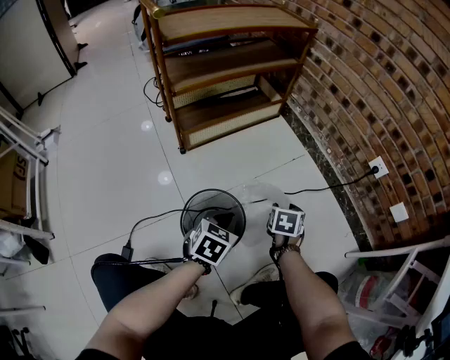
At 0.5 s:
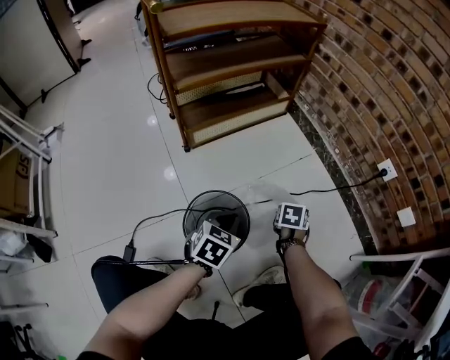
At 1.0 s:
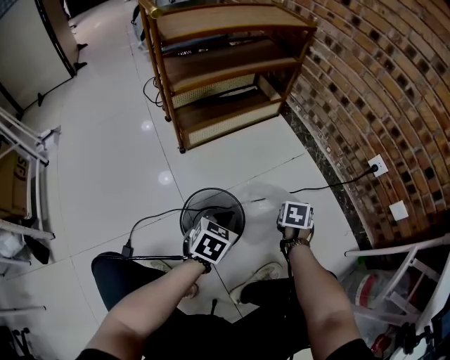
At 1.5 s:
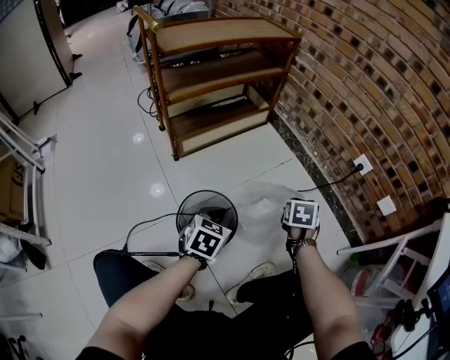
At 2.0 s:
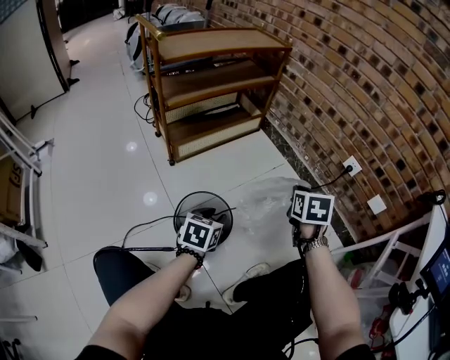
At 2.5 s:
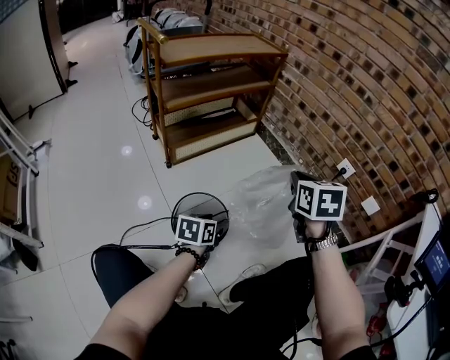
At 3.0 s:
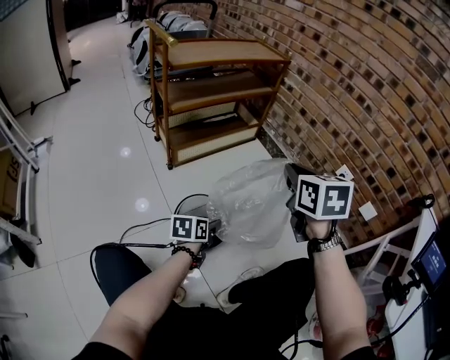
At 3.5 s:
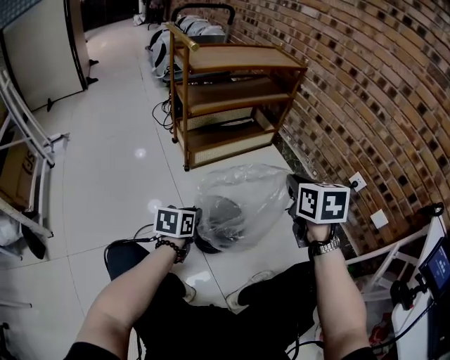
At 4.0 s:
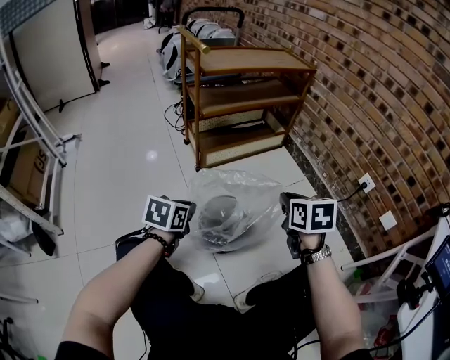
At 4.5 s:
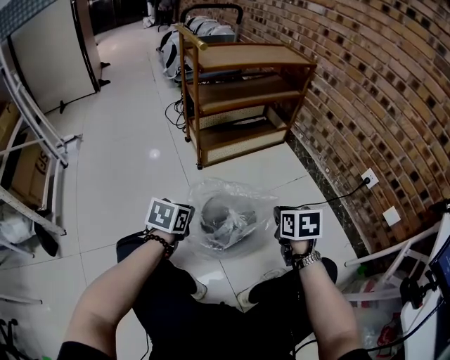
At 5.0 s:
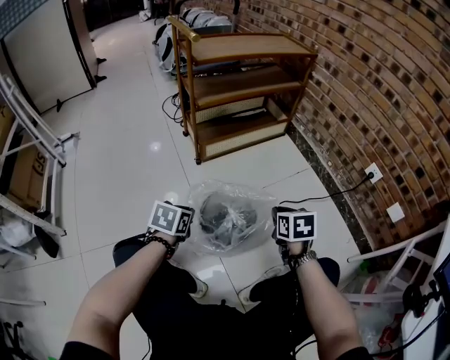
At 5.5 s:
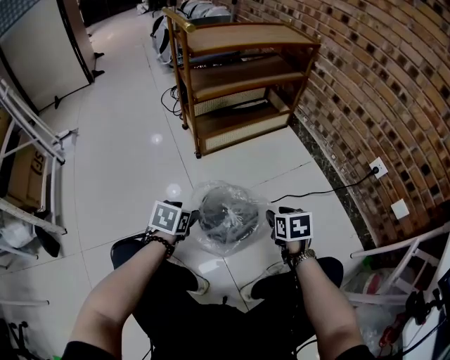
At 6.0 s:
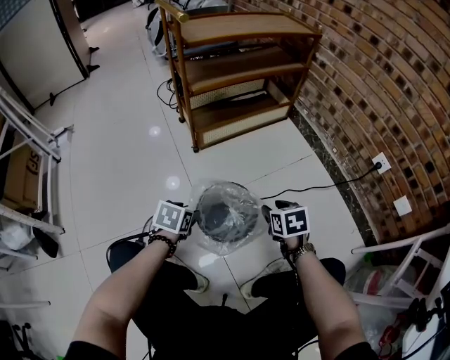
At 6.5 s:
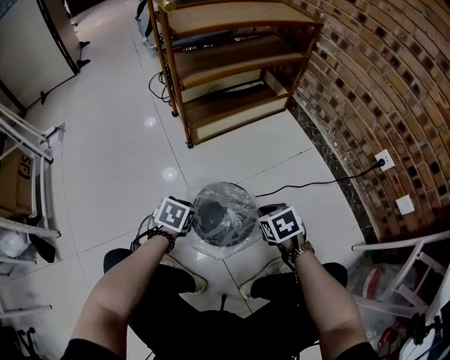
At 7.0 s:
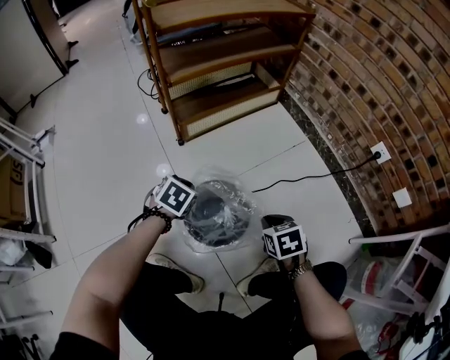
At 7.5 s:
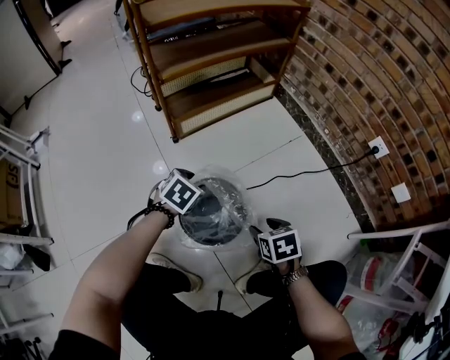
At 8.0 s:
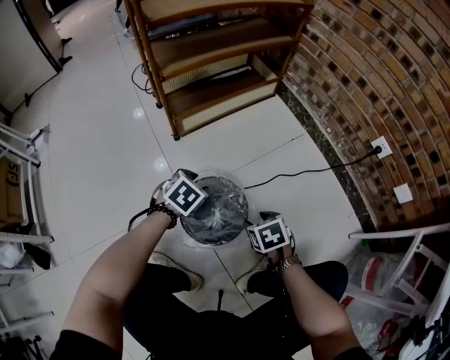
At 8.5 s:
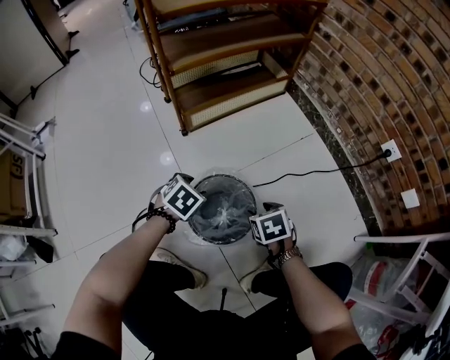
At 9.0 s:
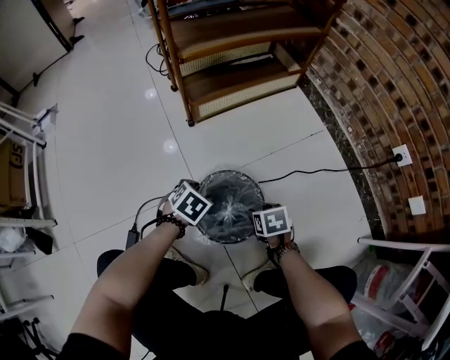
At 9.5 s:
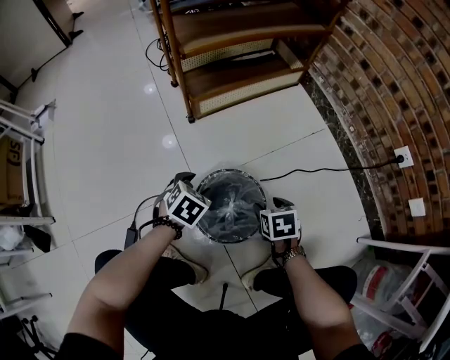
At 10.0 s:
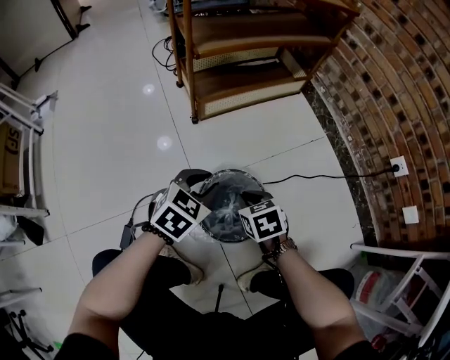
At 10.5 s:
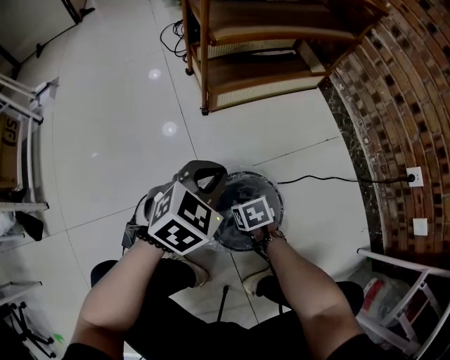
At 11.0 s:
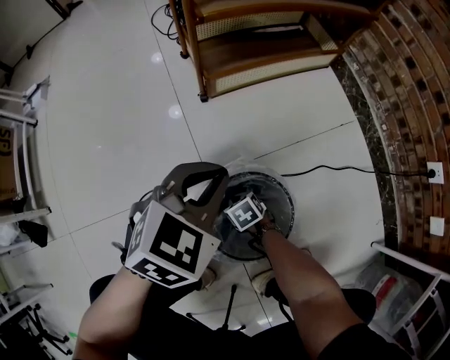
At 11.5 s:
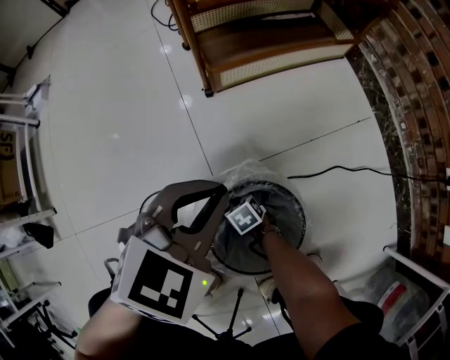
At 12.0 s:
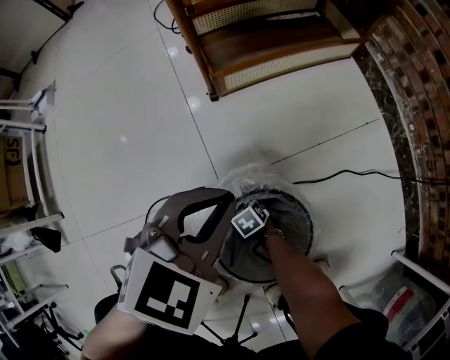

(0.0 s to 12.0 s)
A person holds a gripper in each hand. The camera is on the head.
0.0 s - 2.0 s: The right gripper moves upward, some 20 cm, and closes. The left gripper opens up.
2.0 s - 4.0 s: The left gripper goes approximately 20 cm to the left, upward and backward, and closes up. Meanwhile the right gripper heads to the left and backward, covering some 15 cm, reaches roughly 15 cm upward, then returns, and rotates some 20 degrees.
4.0 s - 6.0 s: The grippers both shift downward by about 15 cm. The left gripper opens up. Meanwhile the right gripper opens.
6.0 s - 8.0 s: The left gripper is displaced forward and to the right by some 15 cm, changes its angle by approximately 30 degrees, and closes, then reopens; the right gripper travels downward by approximately 5 cm, and closes and opens again.
8.0 s - 10.0 s: The right gripper shifts roughly 15 cm to the left and forward, and closes up; the left gripper heads upward, covering approximately 5 cm, and closes its fingers.
10.0 s - 12.0 s: The right gripper goes about 30 cm downward, and rotates some 30 degrees, while the left gripper shifts by some 5 cm, and closes up.

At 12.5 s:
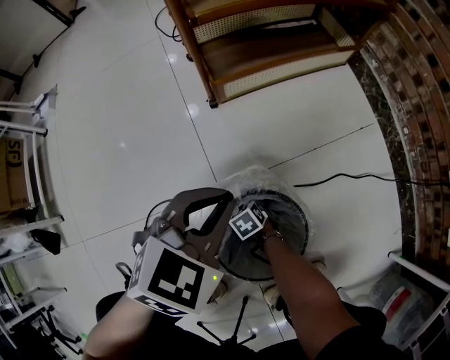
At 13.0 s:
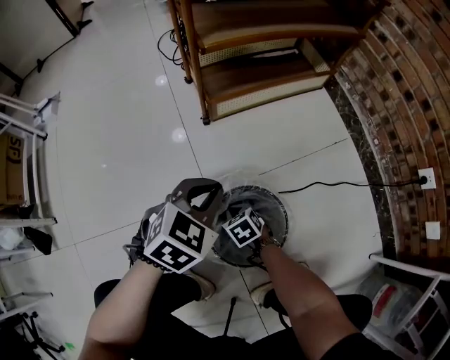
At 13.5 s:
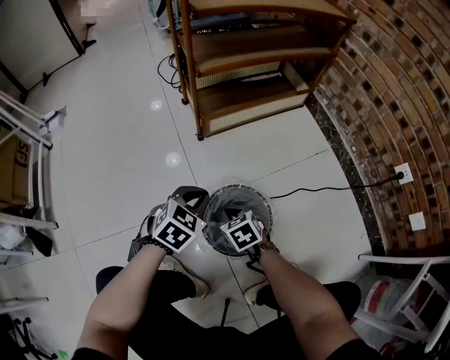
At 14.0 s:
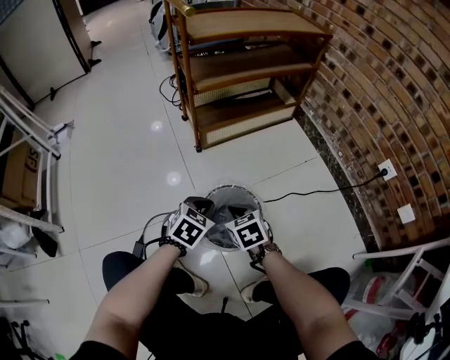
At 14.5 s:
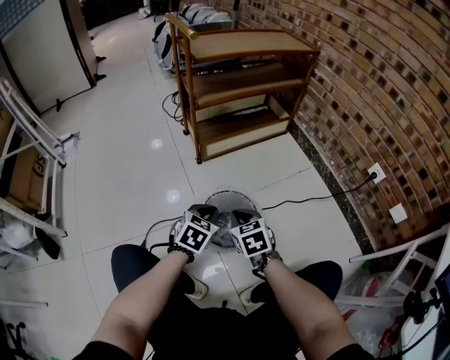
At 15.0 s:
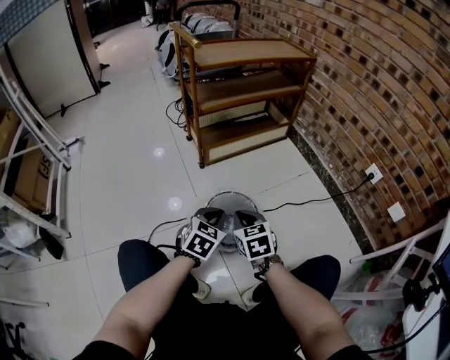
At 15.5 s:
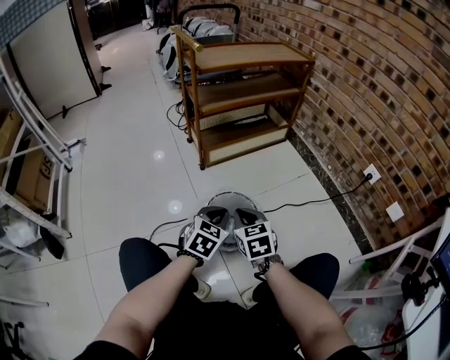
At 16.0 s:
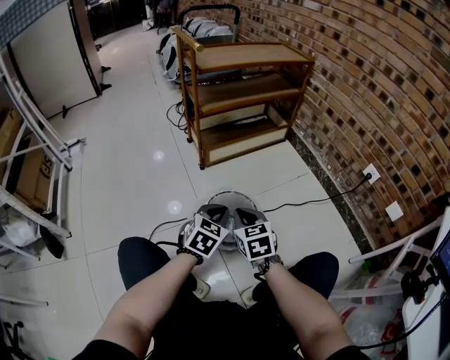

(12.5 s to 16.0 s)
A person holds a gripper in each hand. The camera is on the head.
12.5 s - 14.5 s: The right gripper is displaced upward by about 35 cm, and turns by some 40 degrees, while the left gripper is displaced backward by some 15 cm.
14.5 s - 16.0 s: The left gripper shifts by about 5 cm. The right gripper goes about 5 cm upward.

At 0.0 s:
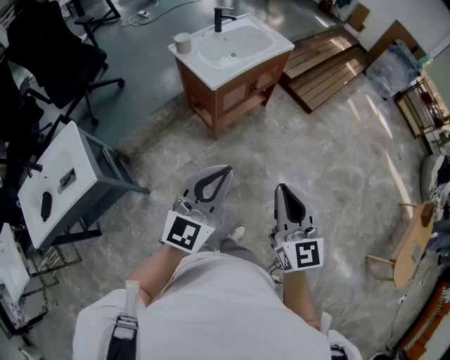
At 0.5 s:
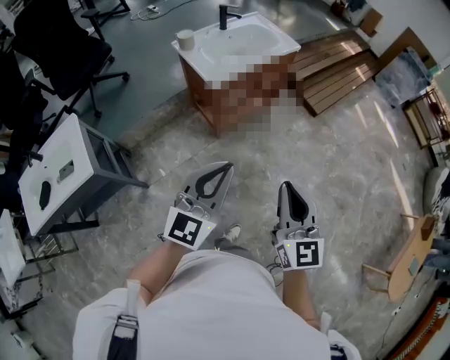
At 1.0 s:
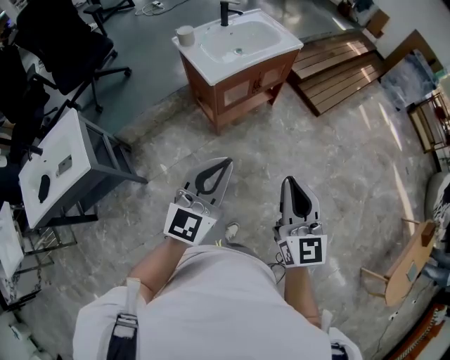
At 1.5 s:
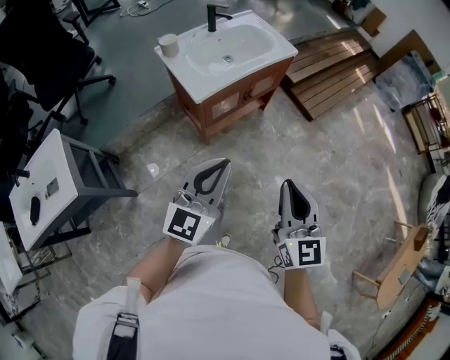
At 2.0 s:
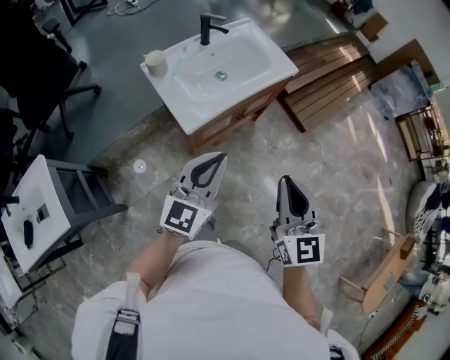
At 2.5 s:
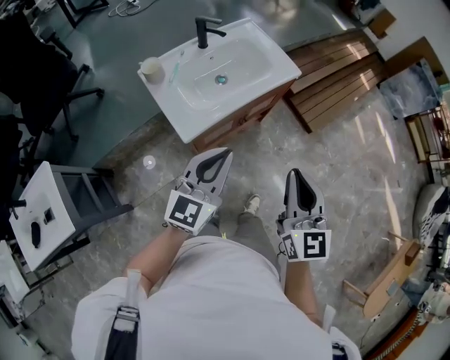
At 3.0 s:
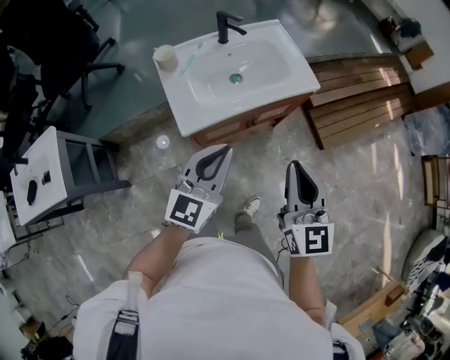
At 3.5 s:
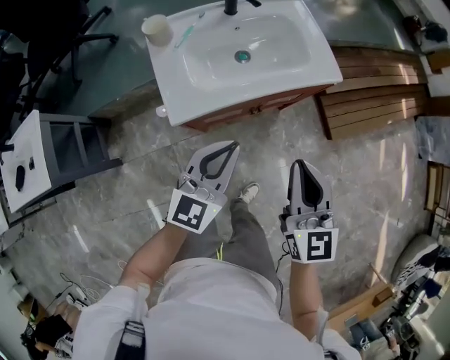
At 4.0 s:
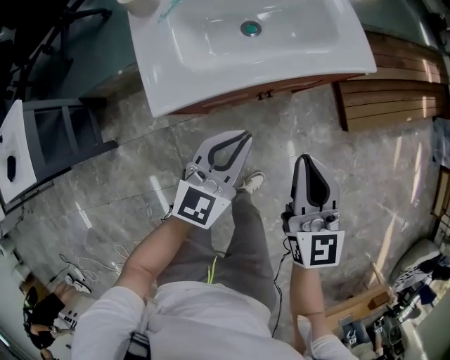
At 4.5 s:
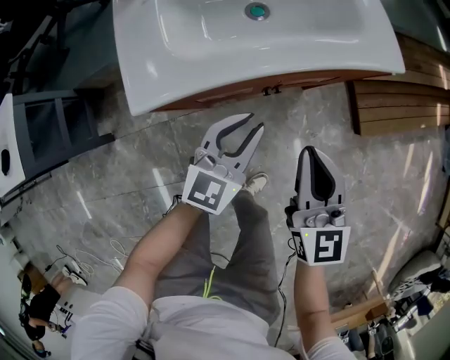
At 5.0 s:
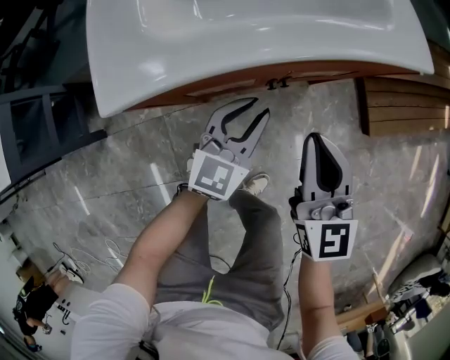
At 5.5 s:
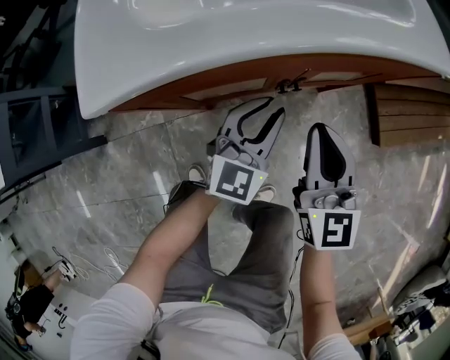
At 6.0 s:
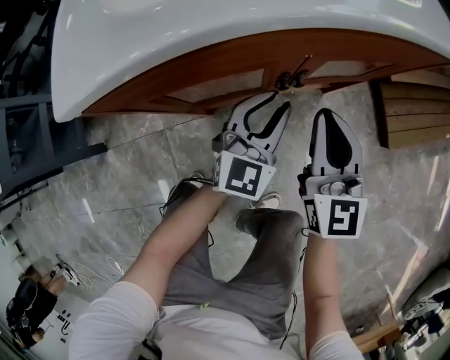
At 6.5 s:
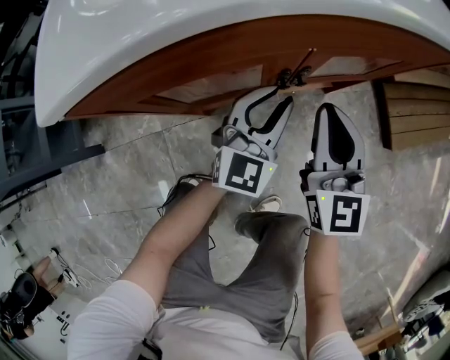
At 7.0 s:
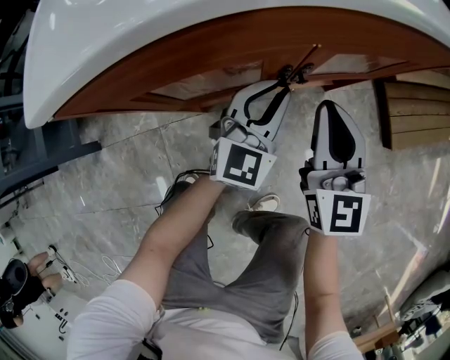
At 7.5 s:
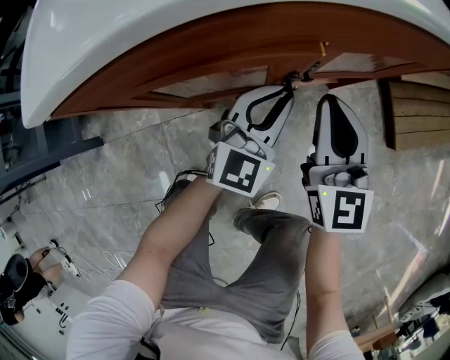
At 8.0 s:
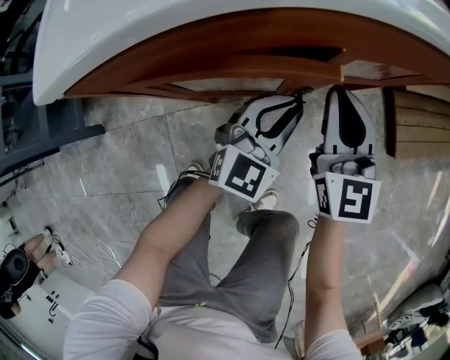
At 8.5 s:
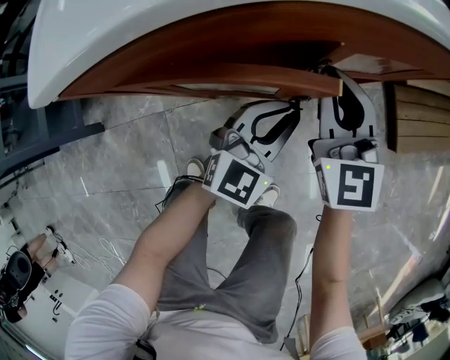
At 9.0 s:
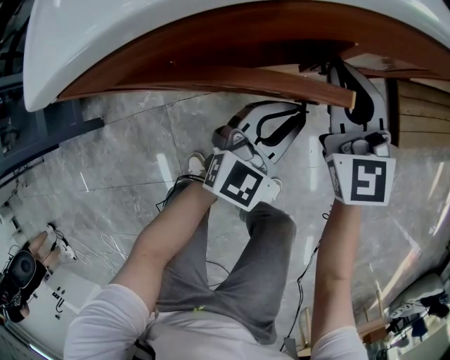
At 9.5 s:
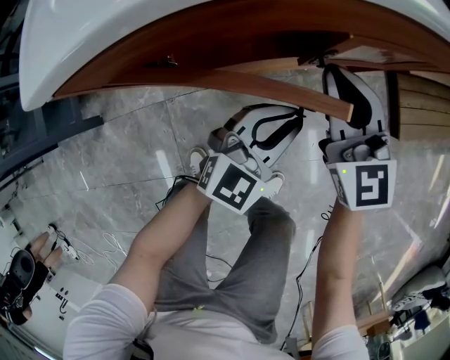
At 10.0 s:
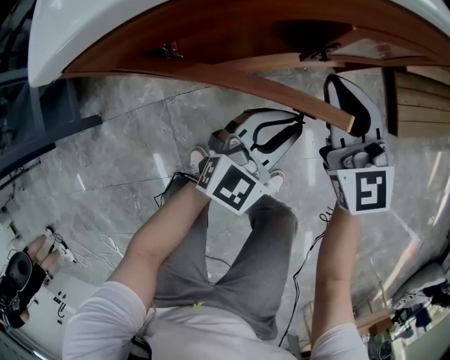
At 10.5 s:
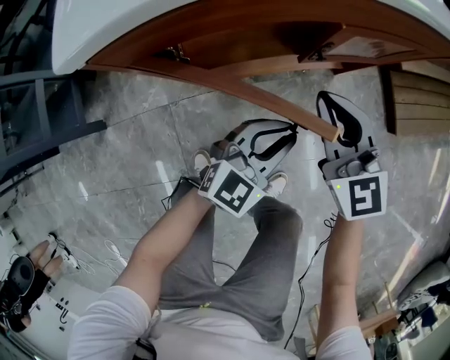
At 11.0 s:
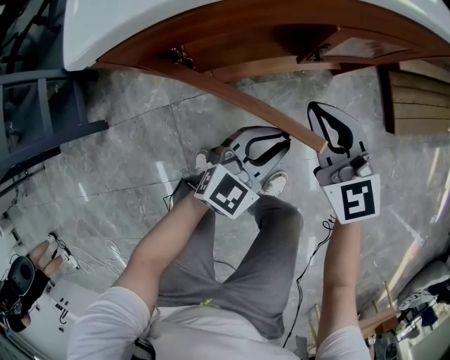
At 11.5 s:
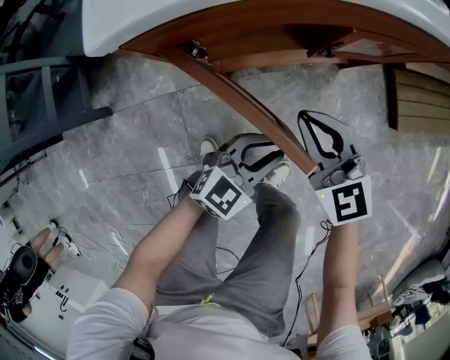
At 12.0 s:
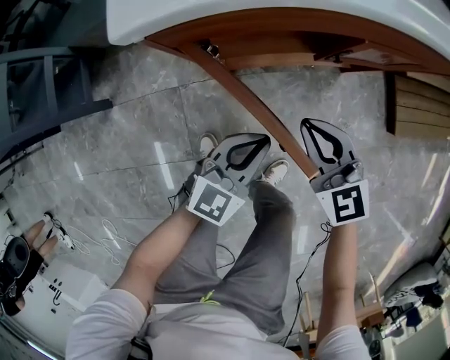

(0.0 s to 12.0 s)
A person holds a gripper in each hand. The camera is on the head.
0.0 s - 2.0 s: Both grippers travel together forward, about 35 cm.
2.0 s - 4.0 s: The right gripper goes roughly 35 cm forward and downward, and turns by roughly 20 degrees, while the left gripper travels downward, forward and to the right by some 35 cm.
4.0 s - 6.0 s: The grippers both shift downward by roughly 30 cm. The left gripper opens up.
6.0 s - 8.0 s: The right gripper changes place by about 5 cm.
8.0 s - 10.0 s: The right gripper changes place by about 5 cm. Meanwhile the left gripper moves backward, some 10 cm.
10.0 s - 12.0 s: The right gripper goes some 10 cm backward and to the left, and rotates roughly 20 degrees, while the left gripper shifts roughly 10 cm to the left and backward.
